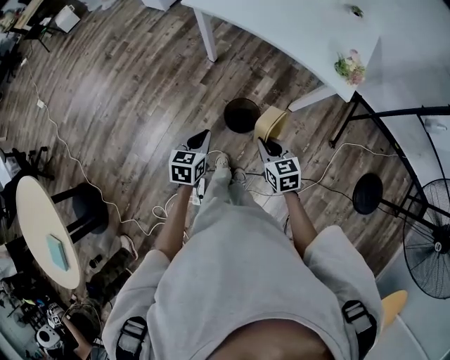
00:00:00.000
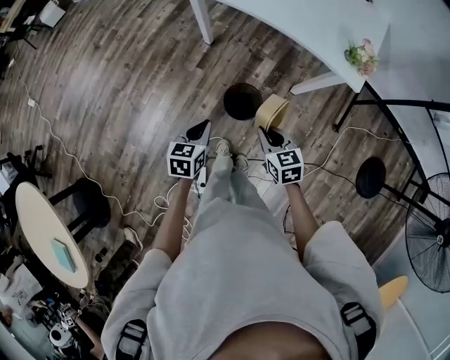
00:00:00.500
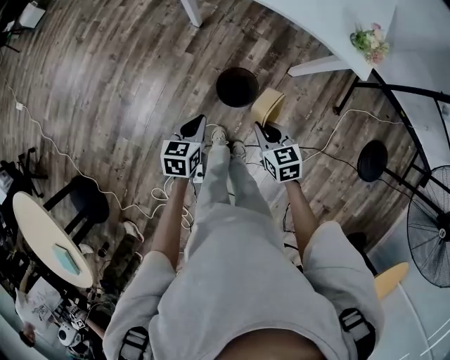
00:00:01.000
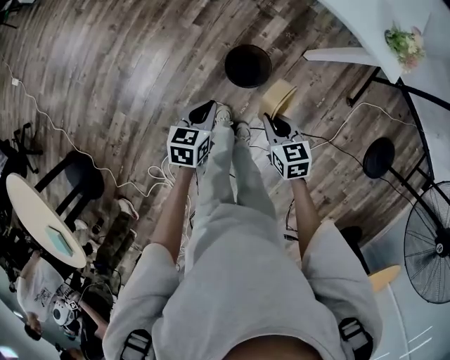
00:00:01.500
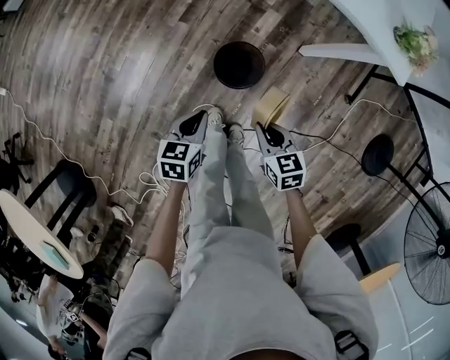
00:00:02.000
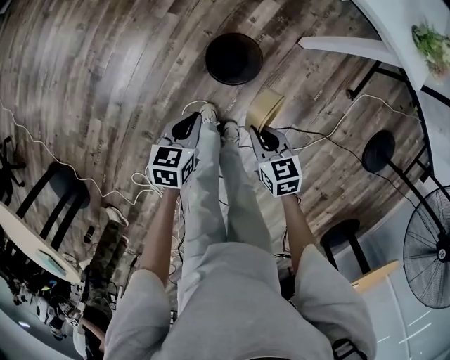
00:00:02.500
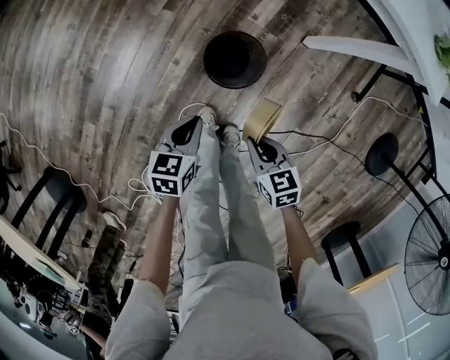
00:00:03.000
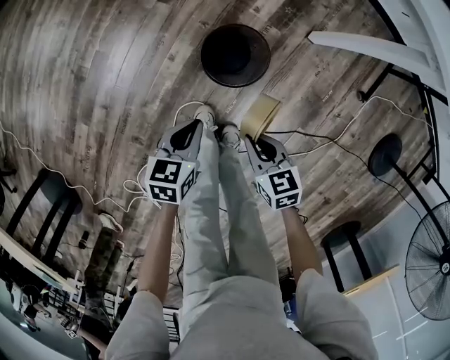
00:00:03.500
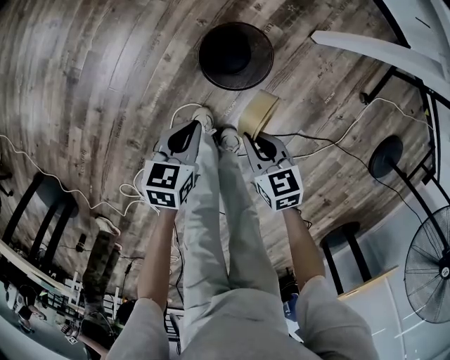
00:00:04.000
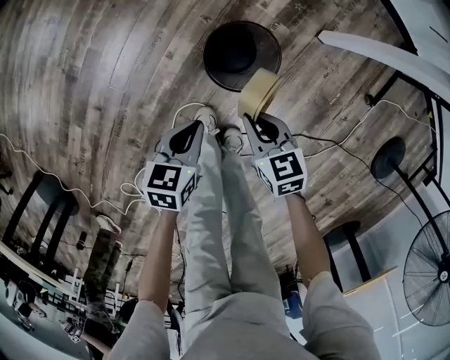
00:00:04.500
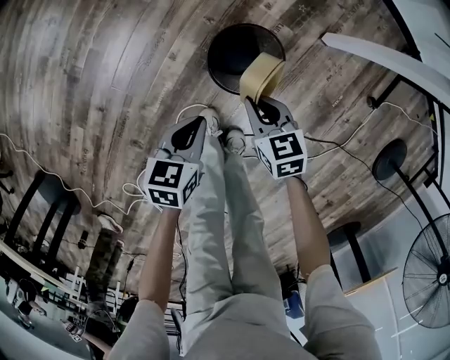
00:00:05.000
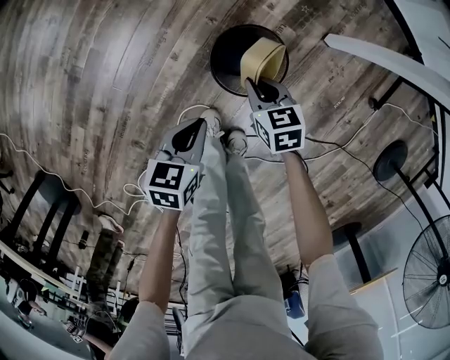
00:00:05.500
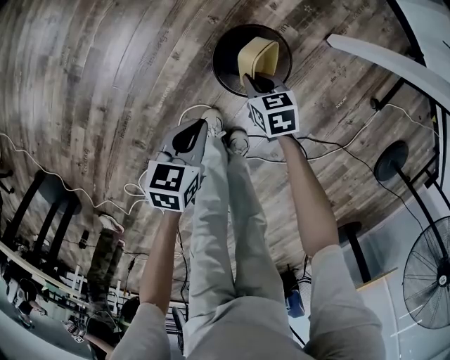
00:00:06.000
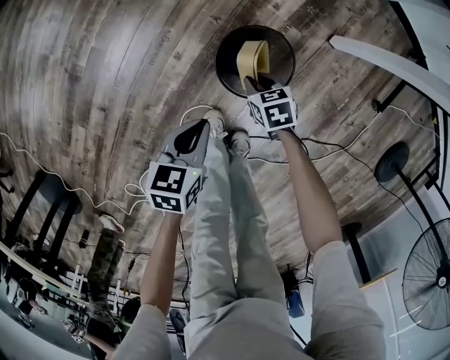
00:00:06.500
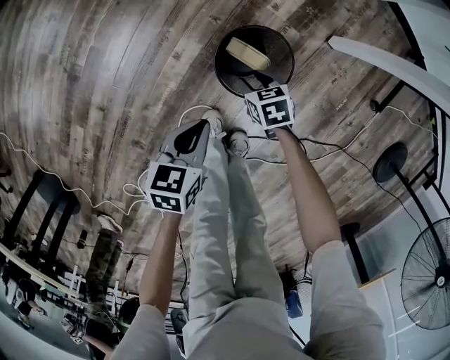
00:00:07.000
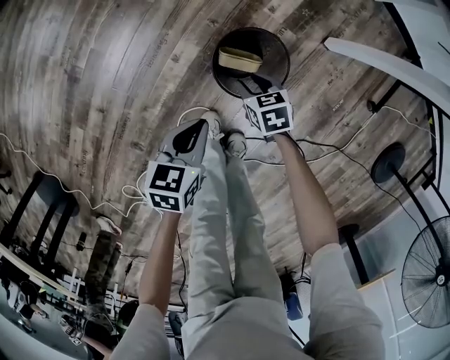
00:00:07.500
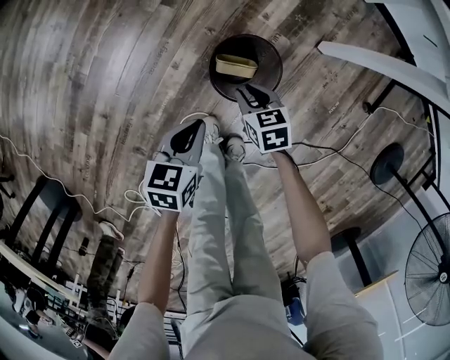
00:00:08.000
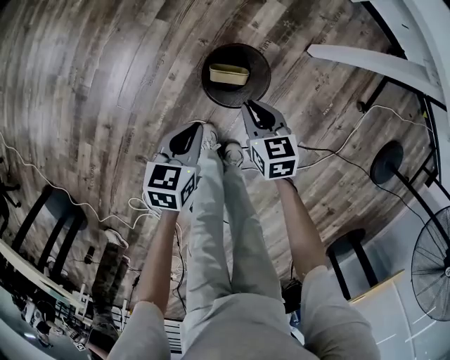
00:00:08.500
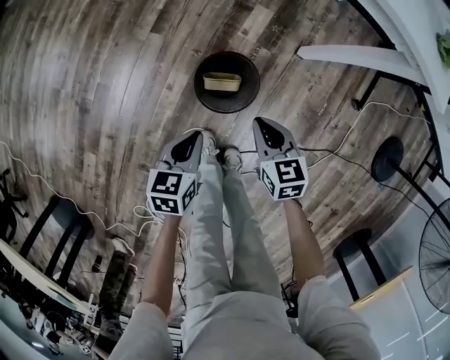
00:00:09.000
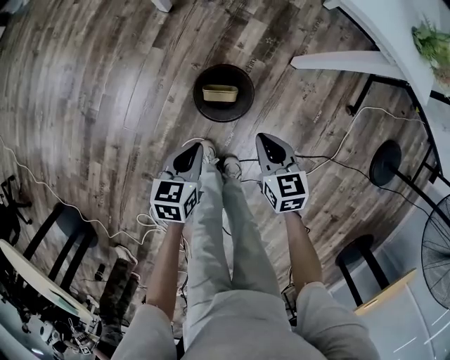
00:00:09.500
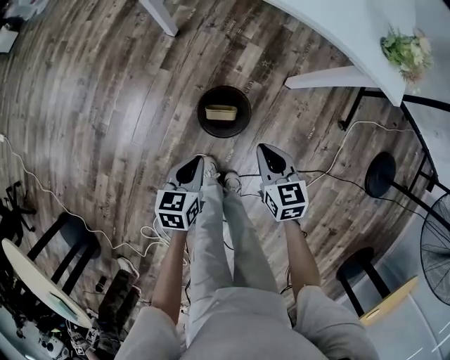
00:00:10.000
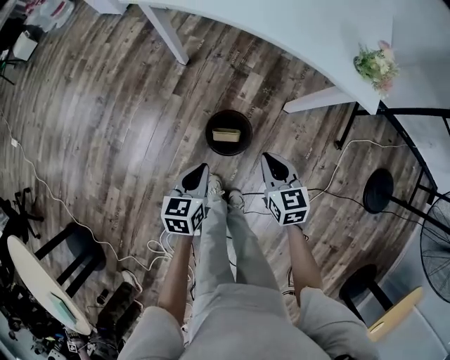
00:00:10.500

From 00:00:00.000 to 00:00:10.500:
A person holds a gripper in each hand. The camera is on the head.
From 00:00:00.000 to 00:00:02.000: The grippers both shift downward by roughly 20 cm.
From 00:00:02.000 to 00:00:04.000: Both grippers move downward, some 20 cm.
From 00:00:04.000 to 00:00:06.500: The right gripper shifts roughly 20 cm downward and forward.
From 00:00:06.500 to 00:00:08.500: The right gripper goes about 15 cm upward, rotates approximately 20 degrees, and opens, then closes again, while the left gripper is displaced upward by about 5 cm.
From 00:00:08.500 to 00:00:10.500: The grippers both shift upward by approximately 20 cm.

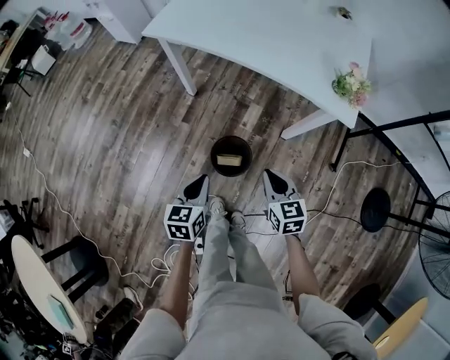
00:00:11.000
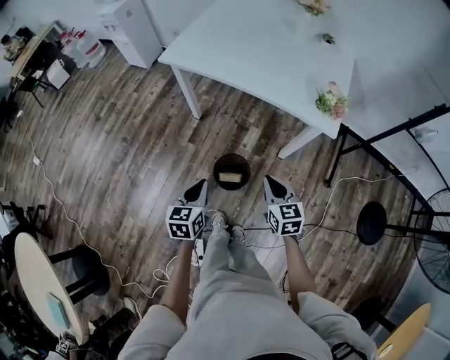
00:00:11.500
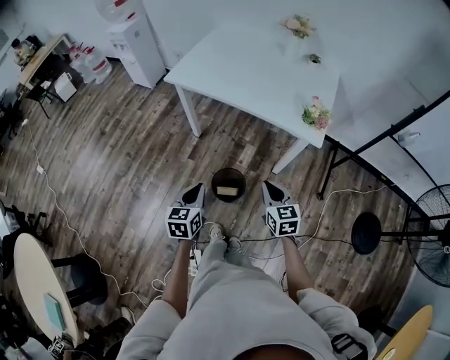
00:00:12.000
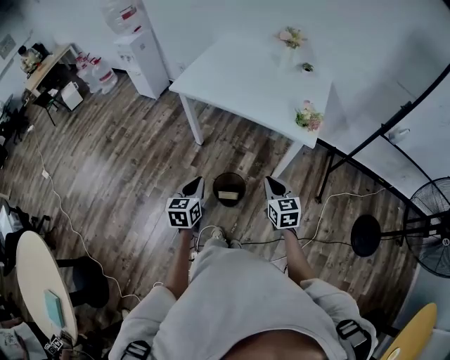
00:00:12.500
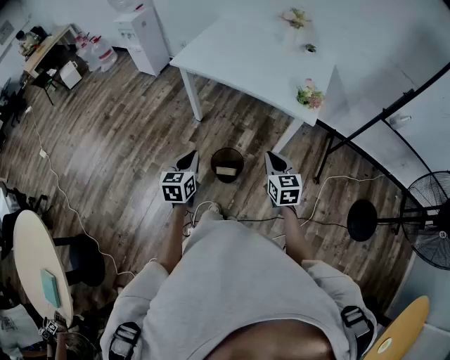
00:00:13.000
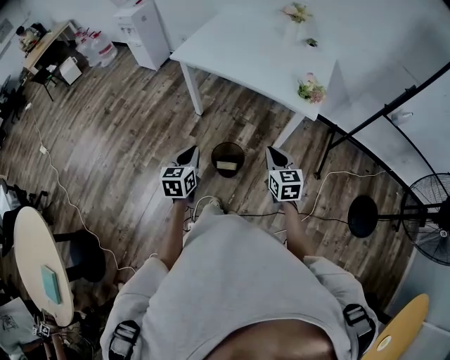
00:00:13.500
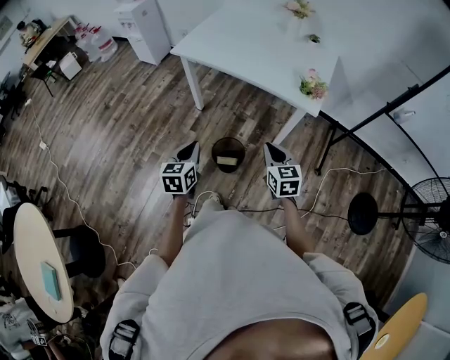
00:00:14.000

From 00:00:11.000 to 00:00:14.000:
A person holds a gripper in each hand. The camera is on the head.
From 00:00:11.000 to 00:00:12.500: The left gripper moves upward, roughly 15 cm; the right gripper shifts some 20 cm upward and backward.
From 00:00:12.500 to 00:00:14.000: The grippers make only small movements.

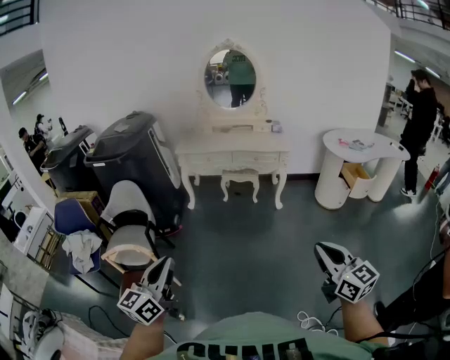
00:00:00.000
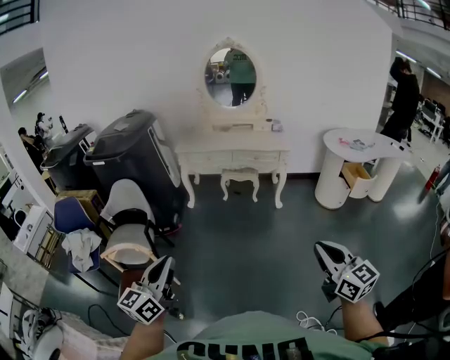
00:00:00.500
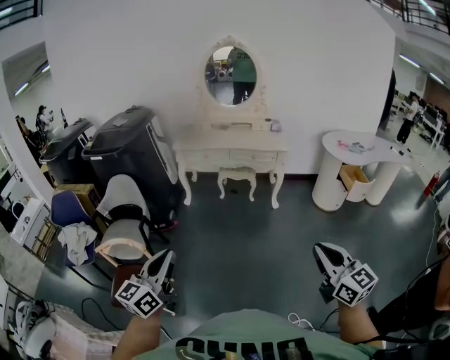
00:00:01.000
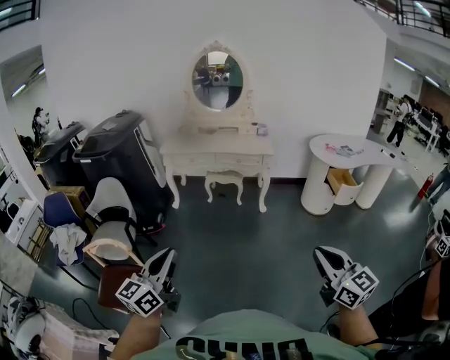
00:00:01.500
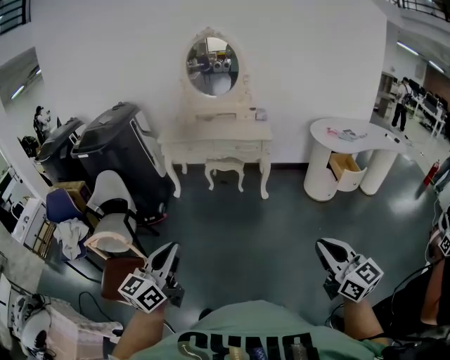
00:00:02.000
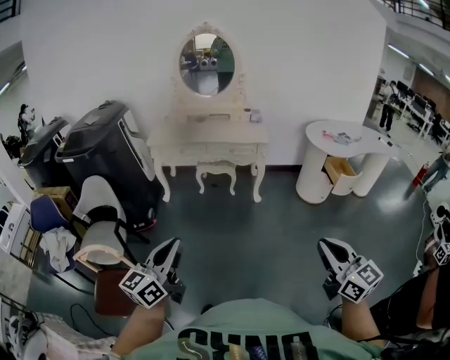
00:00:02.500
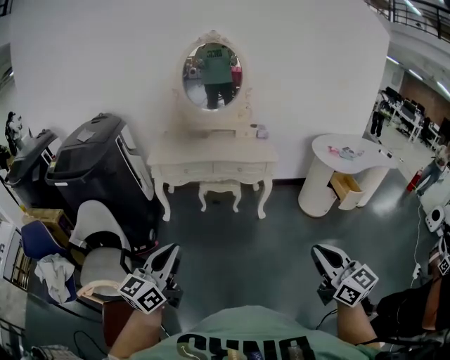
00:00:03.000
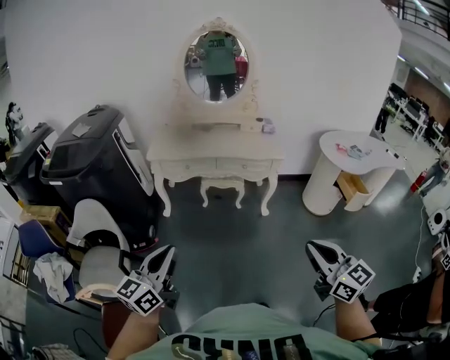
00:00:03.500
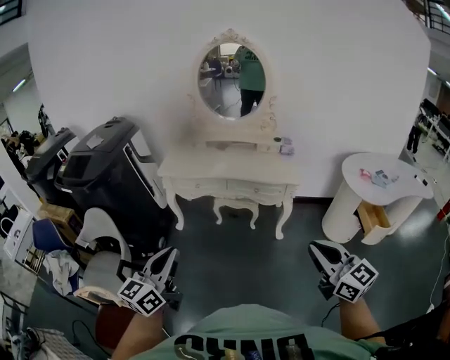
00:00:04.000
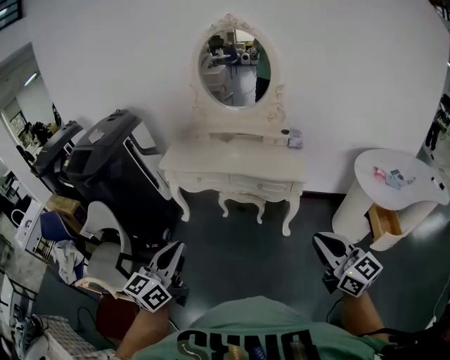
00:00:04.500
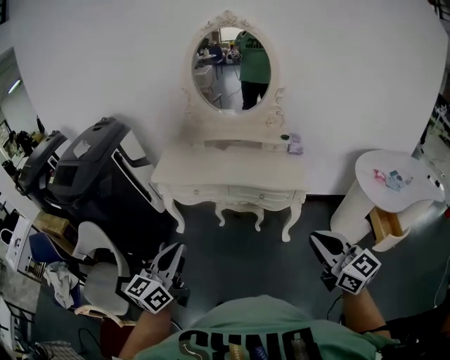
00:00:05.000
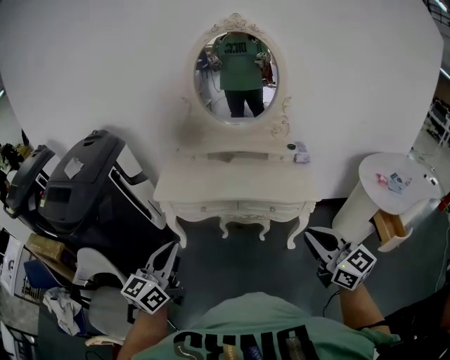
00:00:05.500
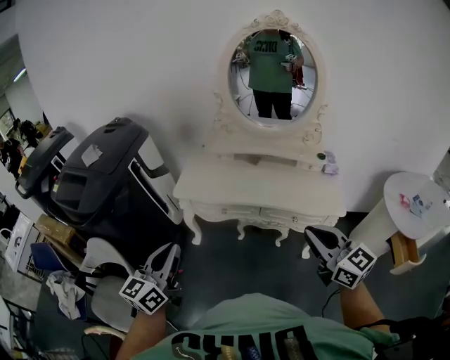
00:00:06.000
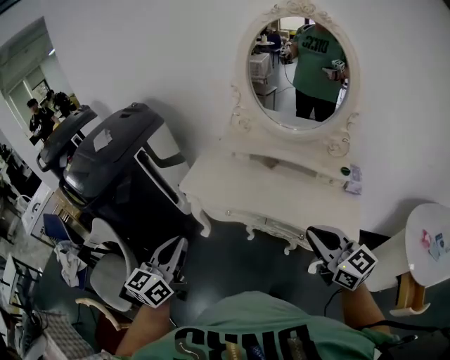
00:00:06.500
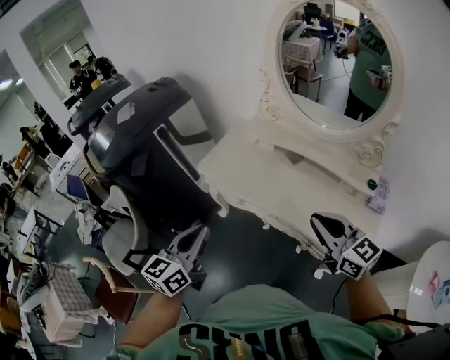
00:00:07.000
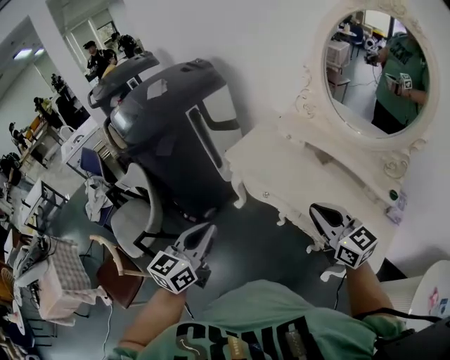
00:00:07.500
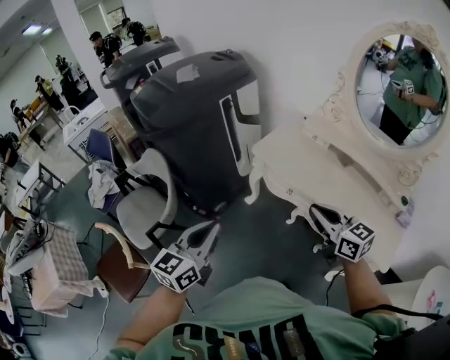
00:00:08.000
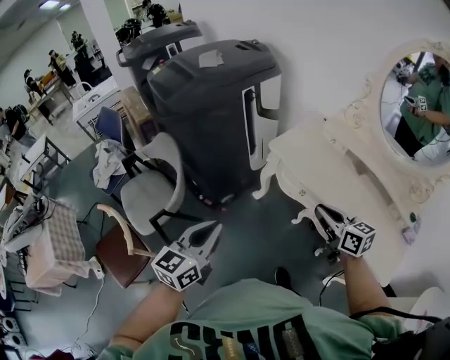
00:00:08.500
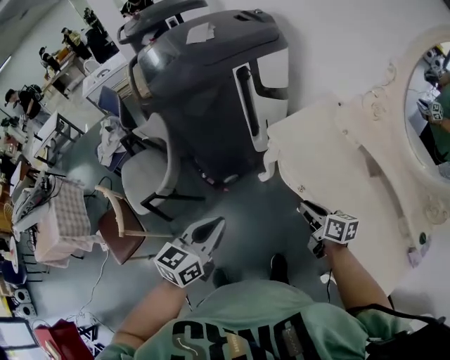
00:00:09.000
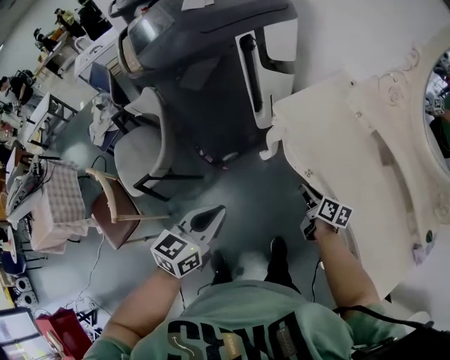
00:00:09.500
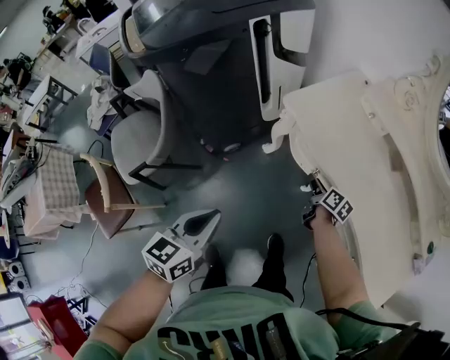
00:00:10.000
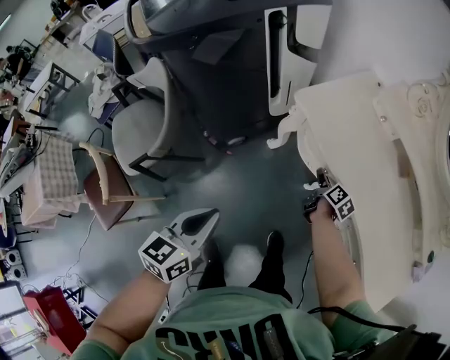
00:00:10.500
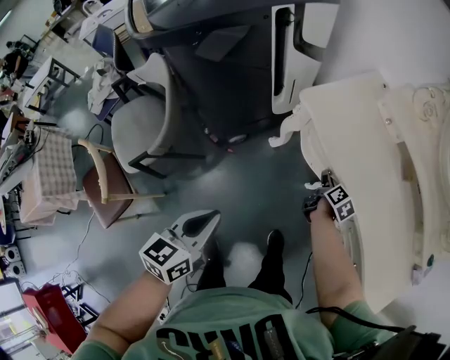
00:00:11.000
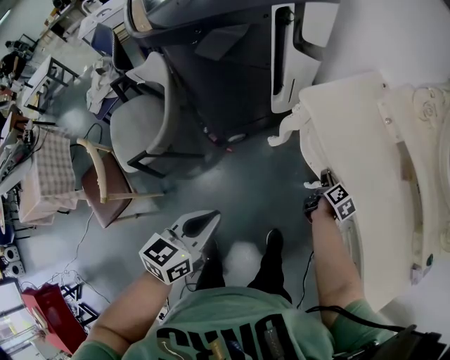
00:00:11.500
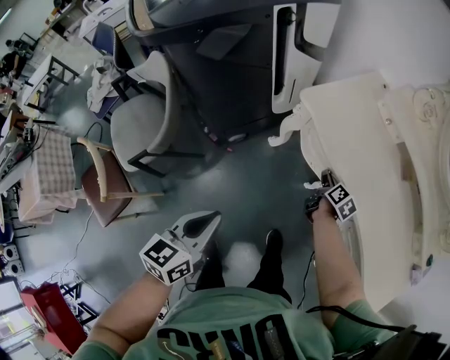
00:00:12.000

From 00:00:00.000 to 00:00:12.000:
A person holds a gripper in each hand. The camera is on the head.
From 00:00:00.000 to 00:00:02.000: The two grippers go approximately 20 cm to the right.
From 00:00:02.000 to 00:00:04.000: The two grippers travel together, forward, approximately 40 cm.
From 00:00:04.000 to 00:00:06.000: The grippers both shift forward by about 35 cm.
From 00:00:06.000 to 00:00:08.000: The left gripper is displaced downward by approximately 5 cm, and changes its angle by about 30 degrees; the right gripper ends up about 20 cm from where it was, and changes its angle by roughly 40 degrees.
From 00:00:08.000 to 00:00:10.000: The right gripper travels downward and forward by approximately 40 cm, twists roughly 50 degrees clockwise, seen from behind, and opens, while the left gripper shifts roughly 20 cm downward, and swivels about 20 degrees.
From 00:00:10.000 to 00:00:12.000: There are only small adjustments of the grippers.

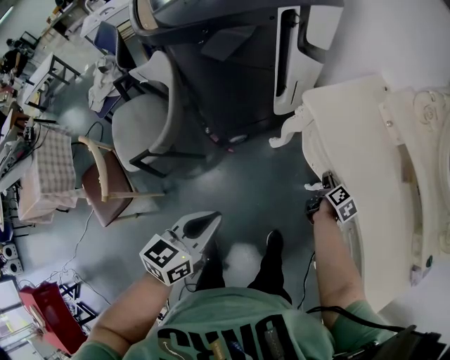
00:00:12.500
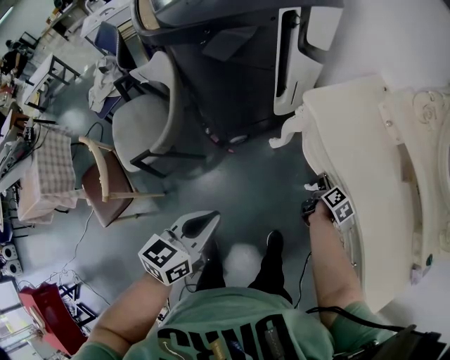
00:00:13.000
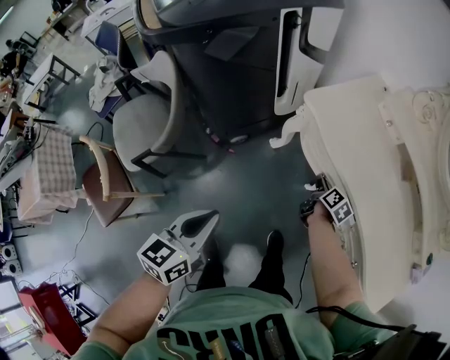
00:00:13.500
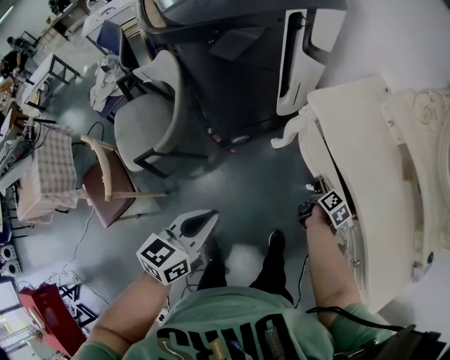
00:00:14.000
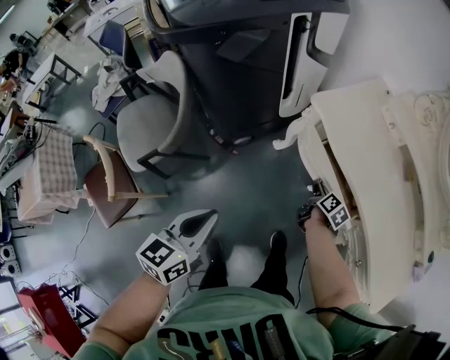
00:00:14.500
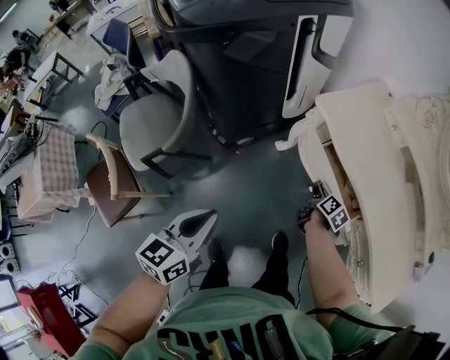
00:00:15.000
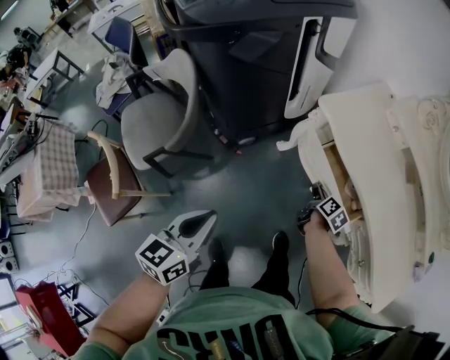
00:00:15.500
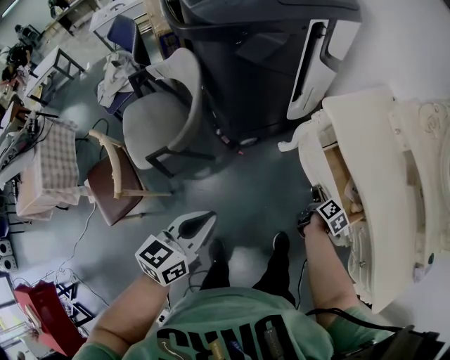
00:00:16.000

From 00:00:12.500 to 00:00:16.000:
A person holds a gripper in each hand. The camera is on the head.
From 00:00:12.500 to 00:00:14.500: The left gripper changes place by some 5 cm; the right gripper is displaced backward and to the left by approximately 10 cm.
From 00:00:14.500 to 00:00:16.000: The left gripper shifts by some 5 cm.
